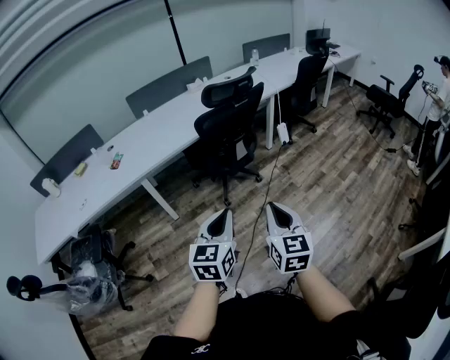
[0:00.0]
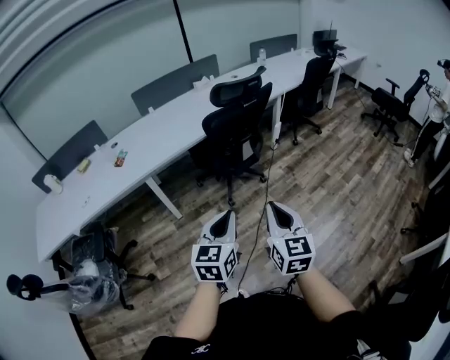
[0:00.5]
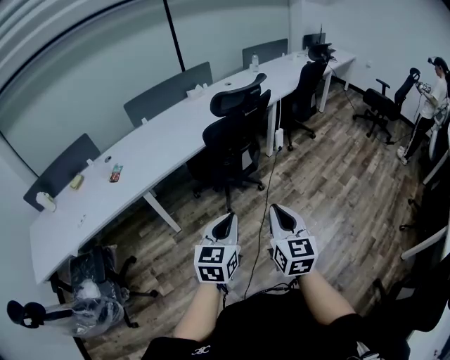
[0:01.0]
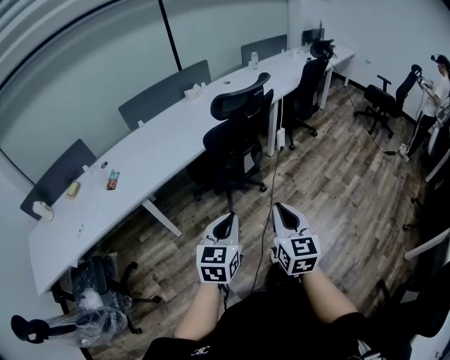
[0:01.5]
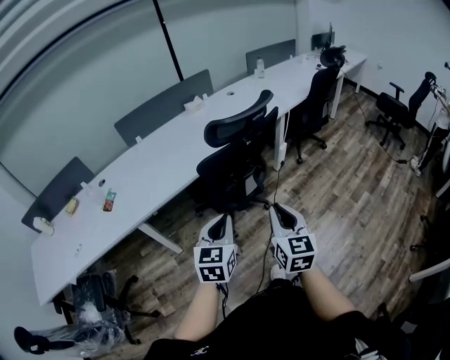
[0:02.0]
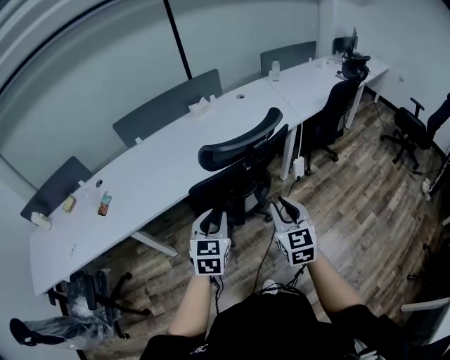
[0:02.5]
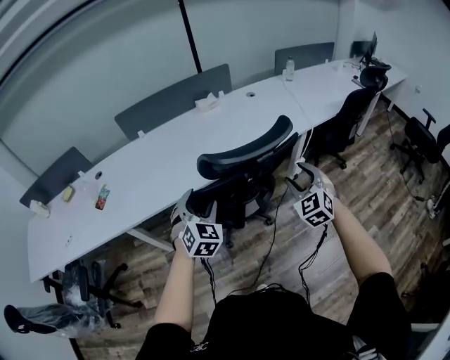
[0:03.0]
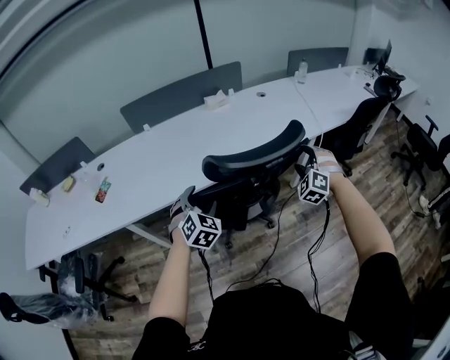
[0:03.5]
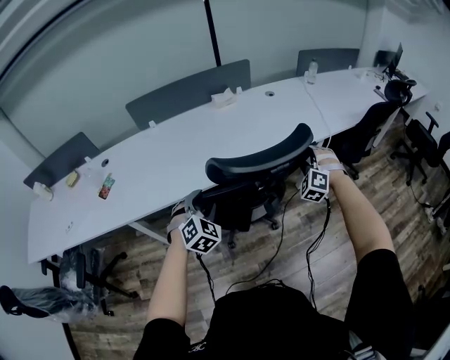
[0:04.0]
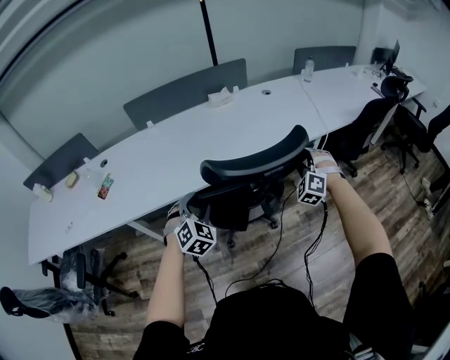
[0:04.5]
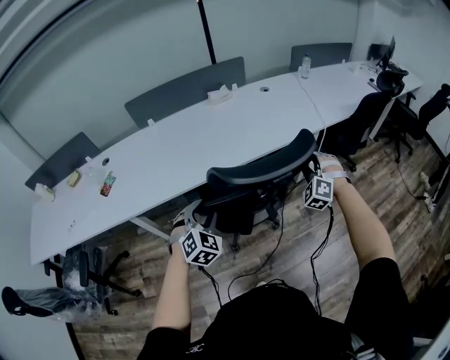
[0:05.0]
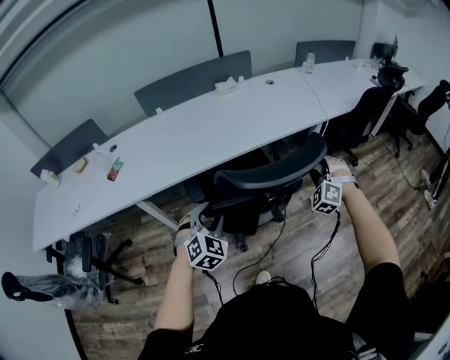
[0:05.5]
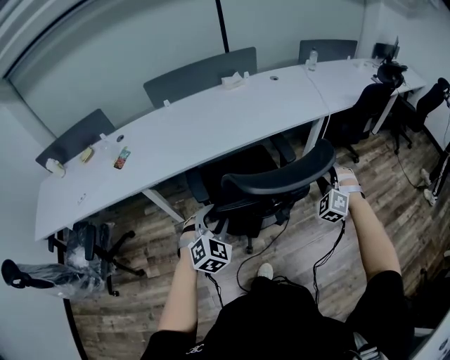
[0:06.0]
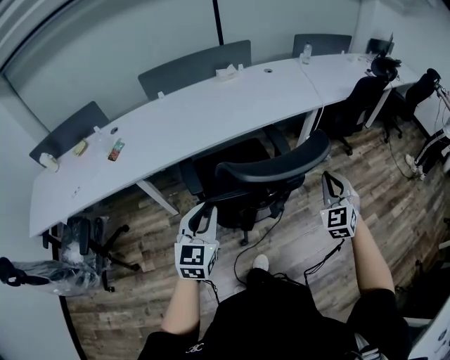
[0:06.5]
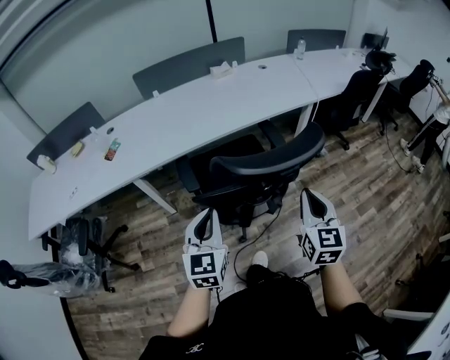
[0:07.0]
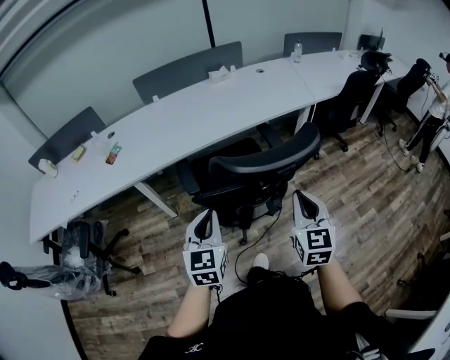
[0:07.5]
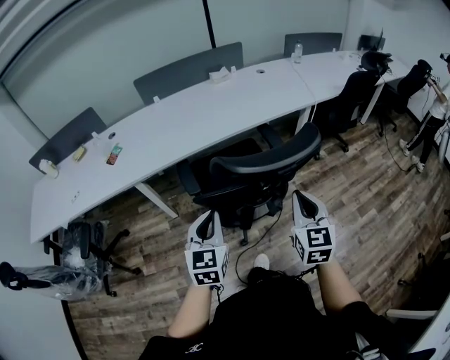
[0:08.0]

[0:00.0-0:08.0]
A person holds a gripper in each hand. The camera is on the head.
0:00.0 to 0:02.0: The grippers both shift forward by roughly 30 cm.
0:02.0 to 0:04.0: The left gripper is displaced forward by approximately 30 cm, turns by approximately 50 degrees, and opens its fingers. Meanwhile the right gripper heads forward, covering approximately 50 cm, rotates around the line of its fingers by roughly 90 degrees, counterclockwise from behind, and opens its fingers.
0:04.0 to 0:06.0: The two grippers go approximately 25 cm backward.
0:06.0 to 0:08.0: The left gripper travels backward and upward by about 10 cm, turns by roughly 40 degrees, and closes up, while the right gripper is displaced backward and to the left by about 20 cm, twists approximately 70 degrees clockwise, seen from behind, and closes its fingers.

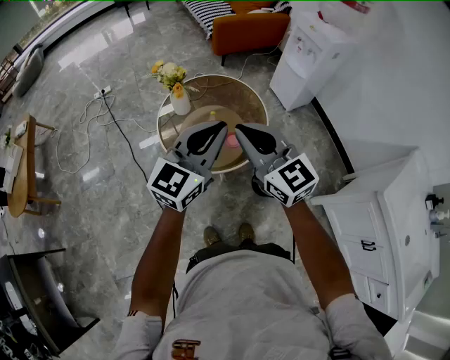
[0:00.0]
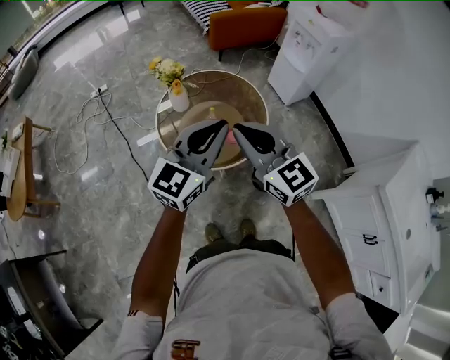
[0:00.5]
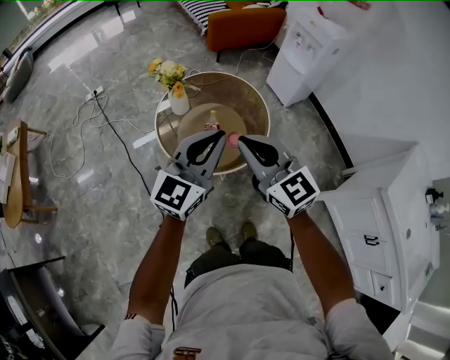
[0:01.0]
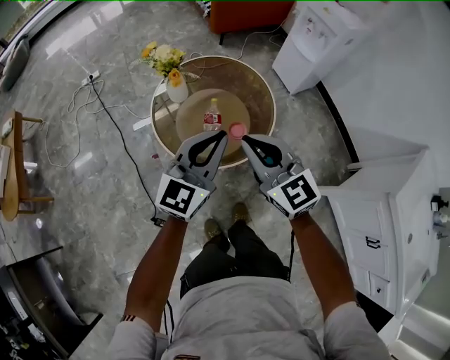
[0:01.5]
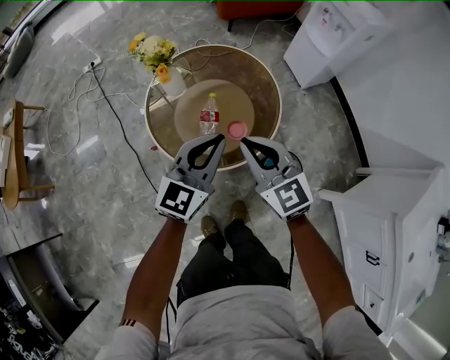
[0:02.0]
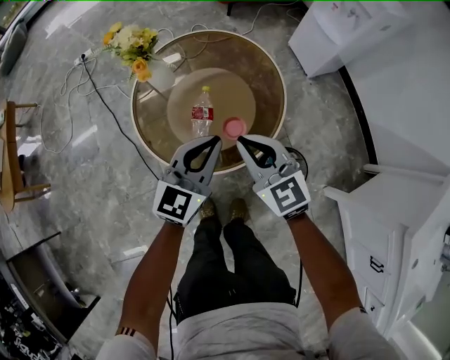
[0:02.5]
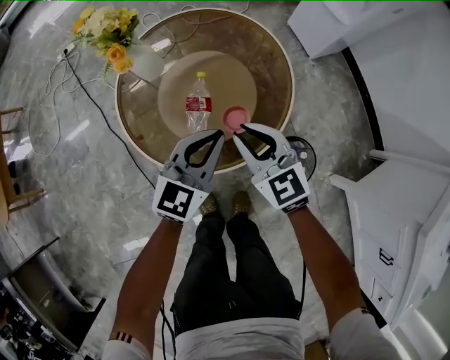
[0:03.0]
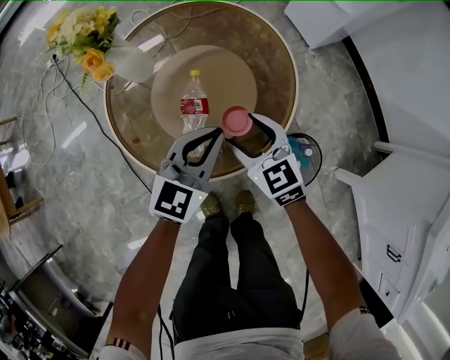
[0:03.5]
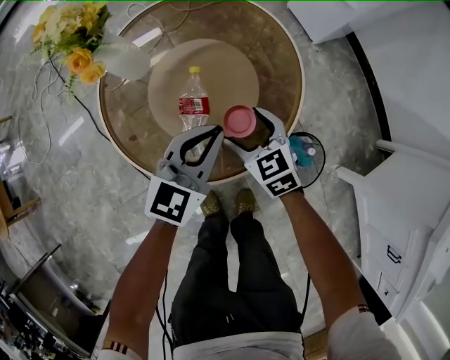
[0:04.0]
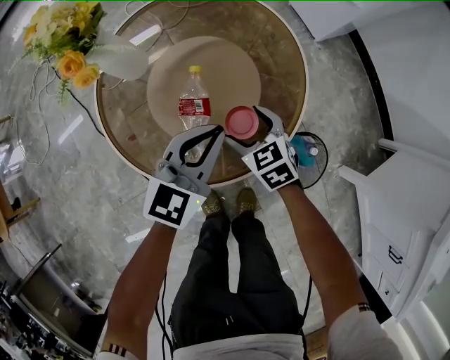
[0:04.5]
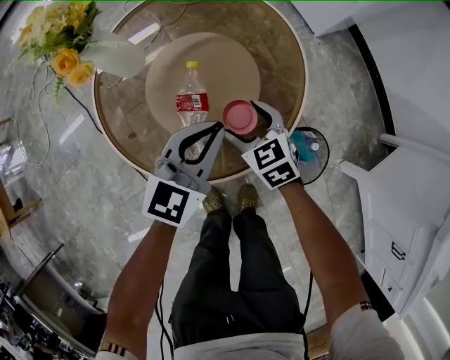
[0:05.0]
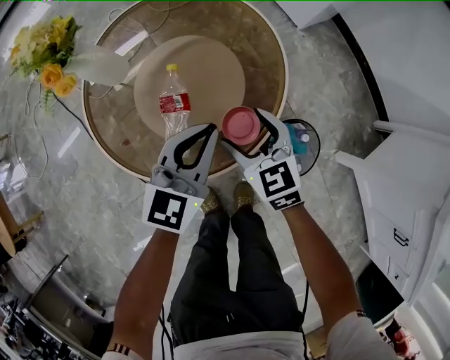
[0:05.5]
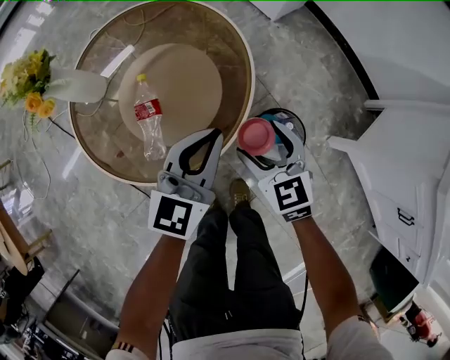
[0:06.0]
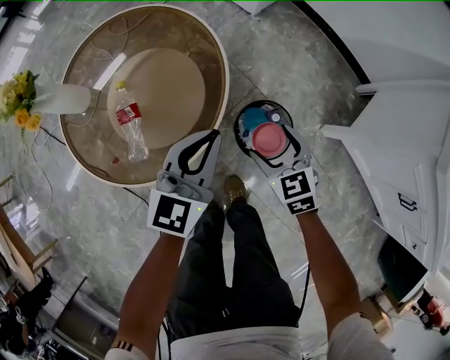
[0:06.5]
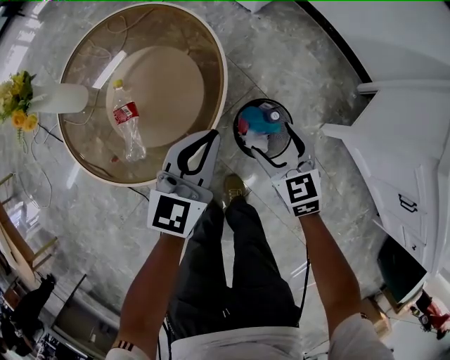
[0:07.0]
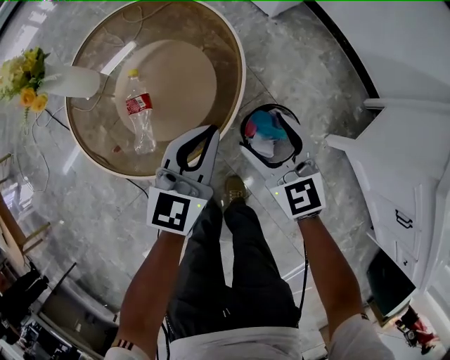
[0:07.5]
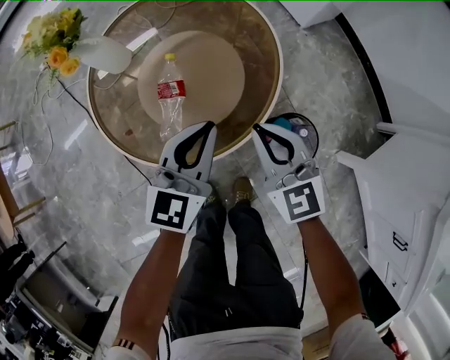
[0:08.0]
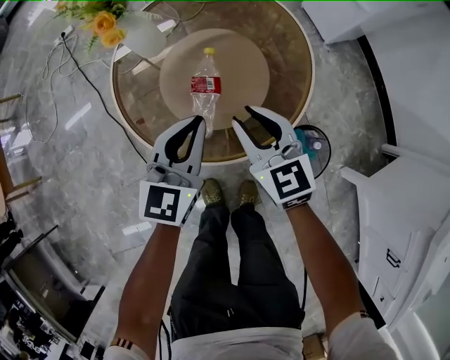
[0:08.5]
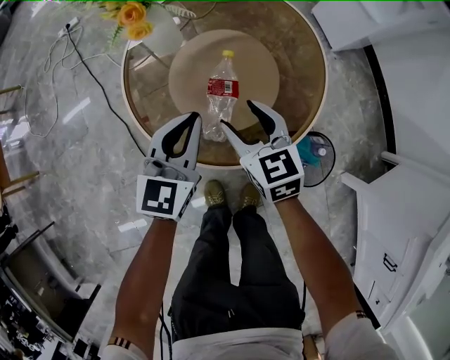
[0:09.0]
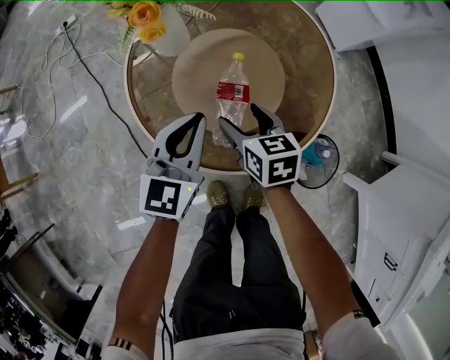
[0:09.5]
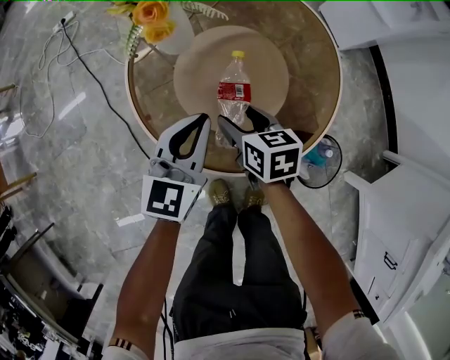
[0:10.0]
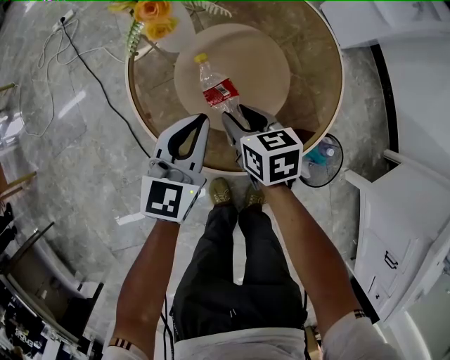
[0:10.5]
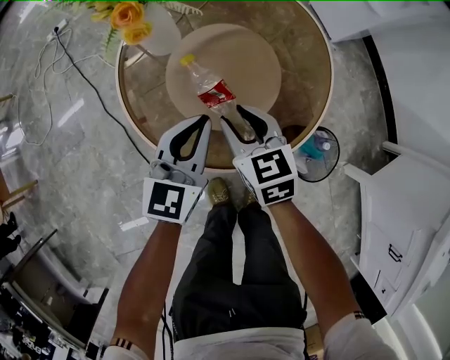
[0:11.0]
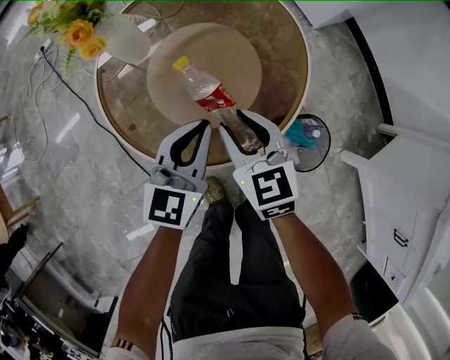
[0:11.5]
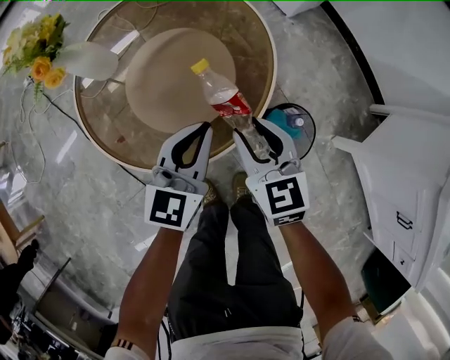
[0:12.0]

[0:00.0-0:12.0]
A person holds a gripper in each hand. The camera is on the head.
0:00.0 to 0:02.0: The grippers both shift downward and forward by some 20 cm.
0:02.0 to 0:04.0: The grippers both shift downward by about 30 cm. The right gripper rotates about 30 degrees, and opens.
0:04.0 to 0:06.0: The left gripper travels to the right by approximately 10 cm, while the right gripper moves to the right, backward and upward, about 15 cm.
0:06.0 to 0:08.0: The left gripper heads to the left, covering roughly 5 cm; the right gripper goes approximately 5 cm upward, moves some 10 cm to the right and comes back, and closes.
0:08.0 to 0:10.0: The right gripper heads to the left, downward and forward, covering some 25 cm, turns by approximately 40 degrees, and opens. The left gripper travels to the left by some 15 cm.
0:10.0 to 0:12.0: The right gripper is displaced to the right, upward and backward by approximately 20 cm, rotates roughly 30 degrees, and closes. The left gripper is displaced to the right by some 15 cm.

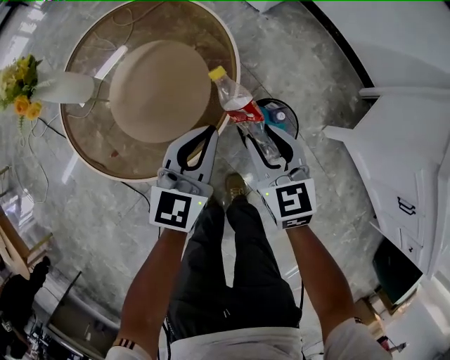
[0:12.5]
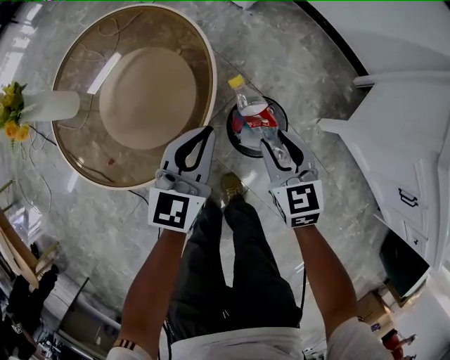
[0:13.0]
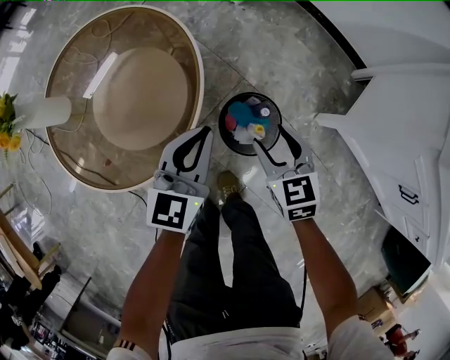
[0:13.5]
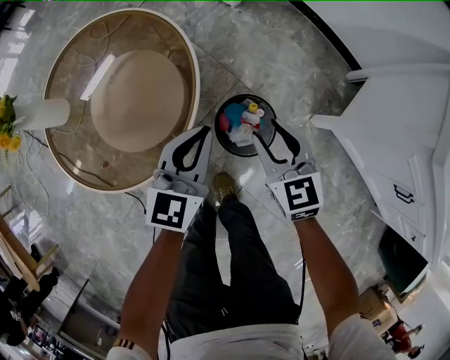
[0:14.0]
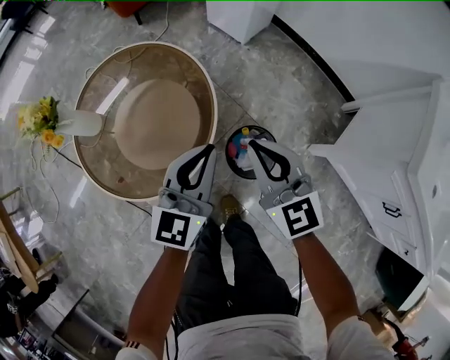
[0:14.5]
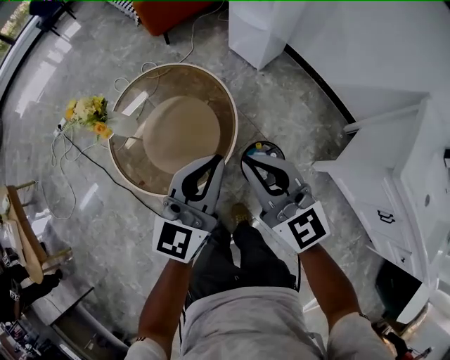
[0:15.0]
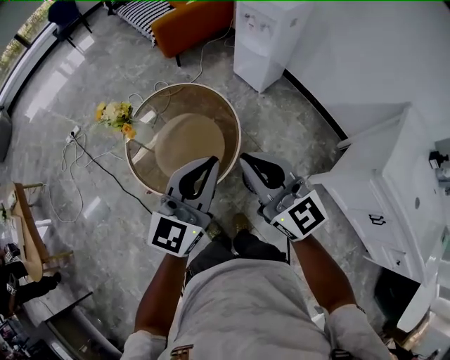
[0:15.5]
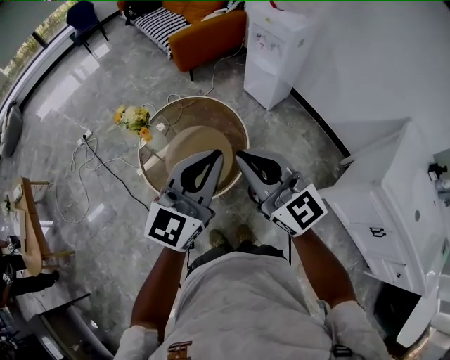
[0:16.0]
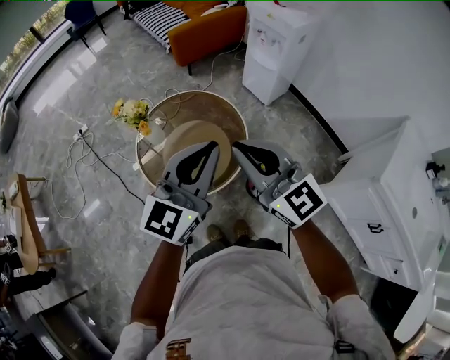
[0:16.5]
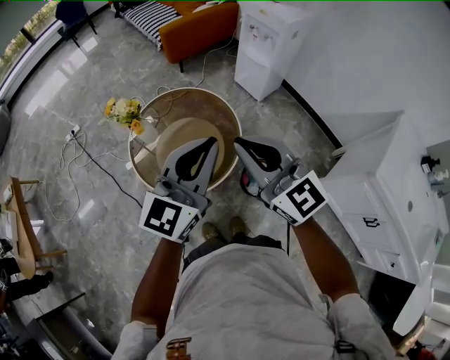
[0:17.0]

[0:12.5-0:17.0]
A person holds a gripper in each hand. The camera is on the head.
0:12.5 to 0:14.5: The left gripper goes about 15 cm upward and to the right; the right gripper heads upward, covering roughly 15 cm, and closes.
0:14.5 to 0:17.0: The left gripper is displaced upward by roughly 30 cm. Meanwhile the right gripper is displaced upward and to the left by approximately 35 cm, and swivels about 30 degrees.

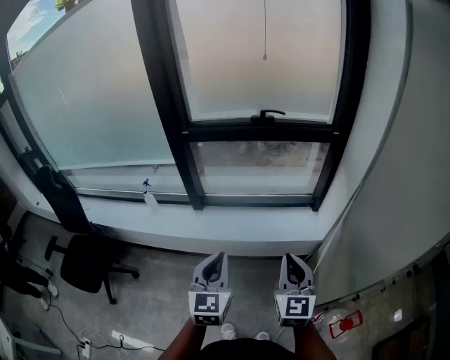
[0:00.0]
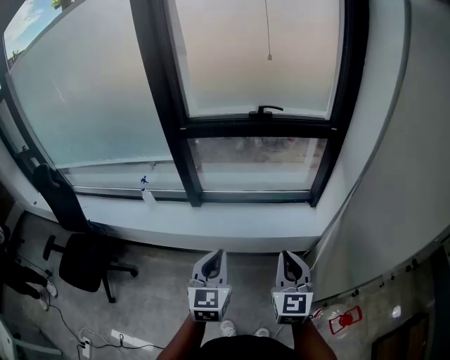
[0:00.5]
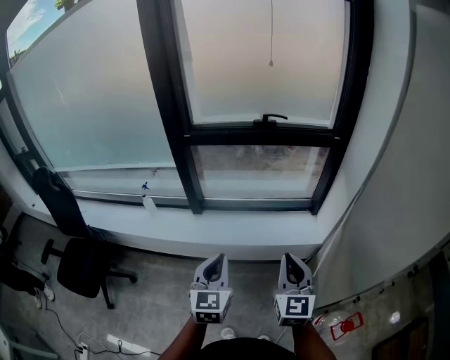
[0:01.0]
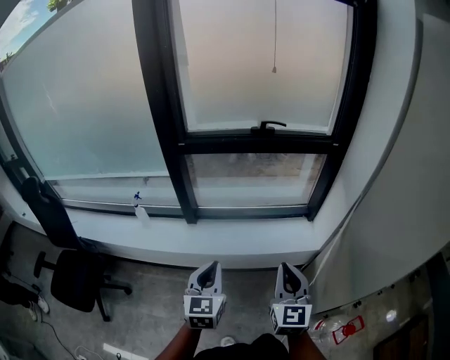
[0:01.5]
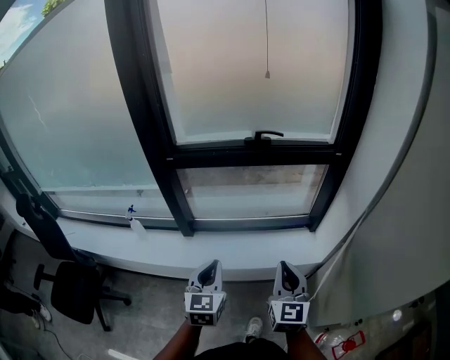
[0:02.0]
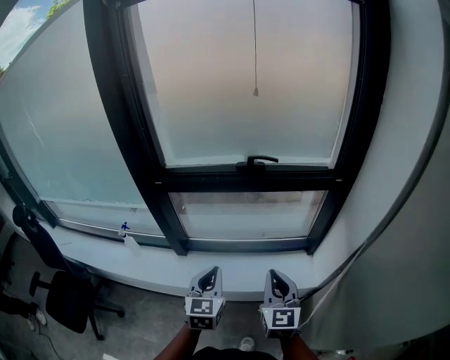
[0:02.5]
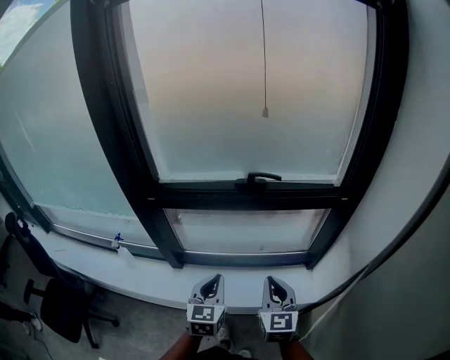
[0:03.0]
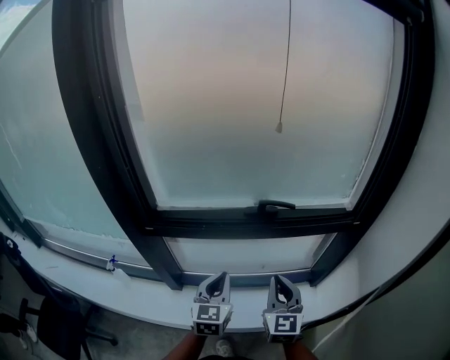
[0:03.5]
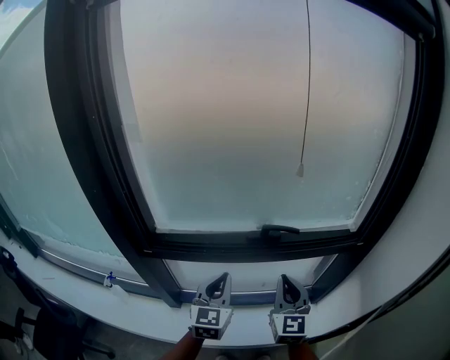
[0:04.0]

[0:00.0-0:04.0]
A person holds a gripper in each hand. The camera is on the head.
0:00.0 to 0:02.0: Both grippers travel together forward, approximately 15 cm.
0:02.0 to 0:04.0: The two grippers go some 35 cm forward.
